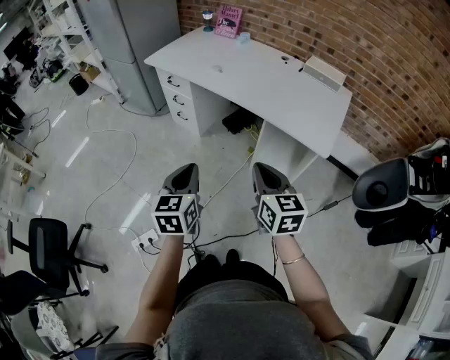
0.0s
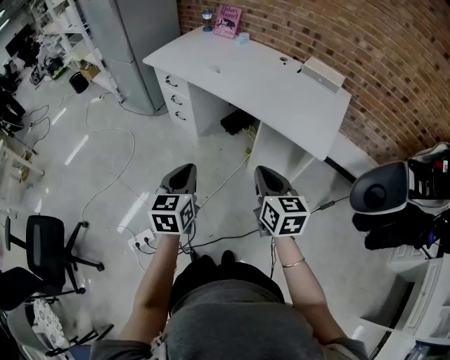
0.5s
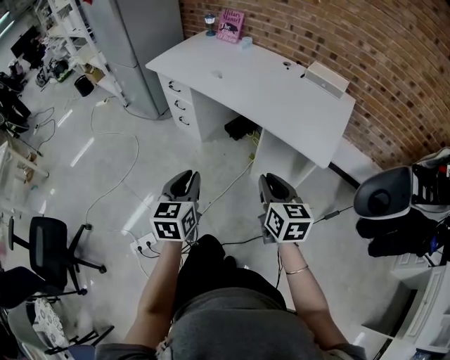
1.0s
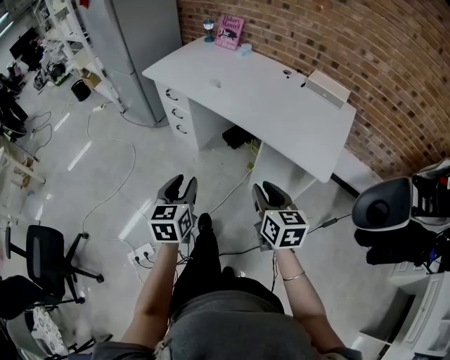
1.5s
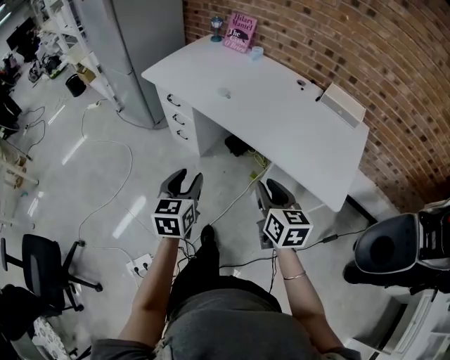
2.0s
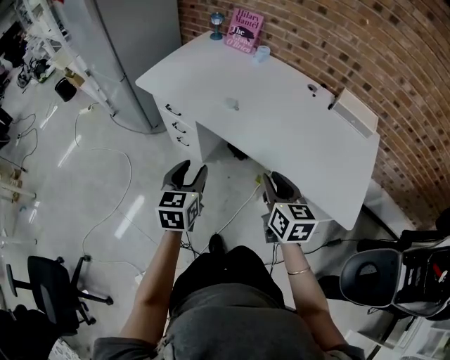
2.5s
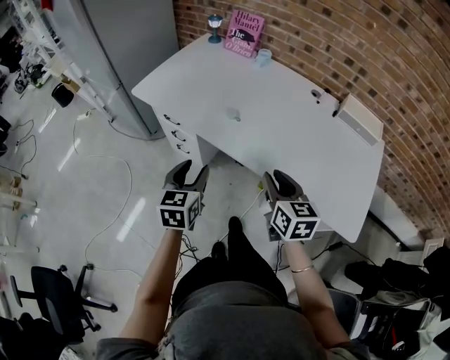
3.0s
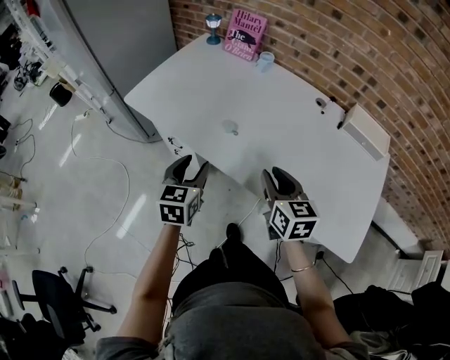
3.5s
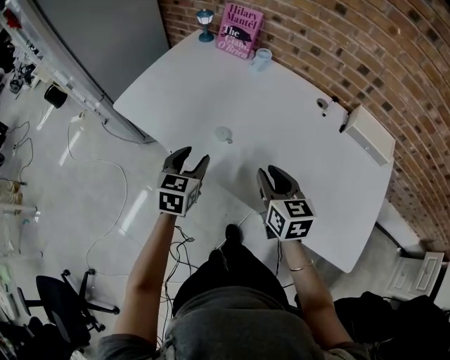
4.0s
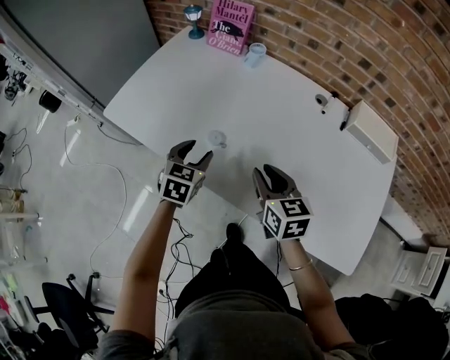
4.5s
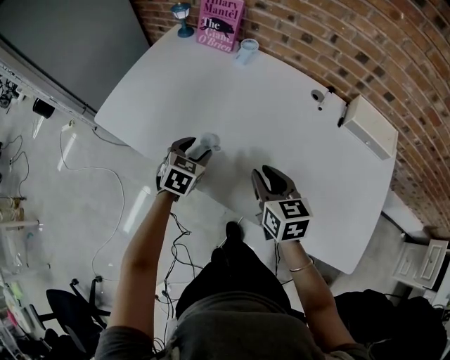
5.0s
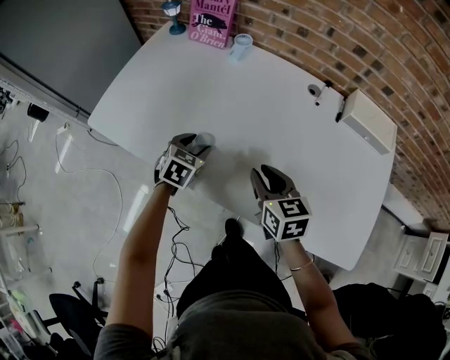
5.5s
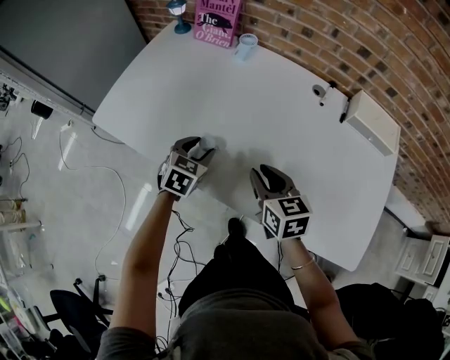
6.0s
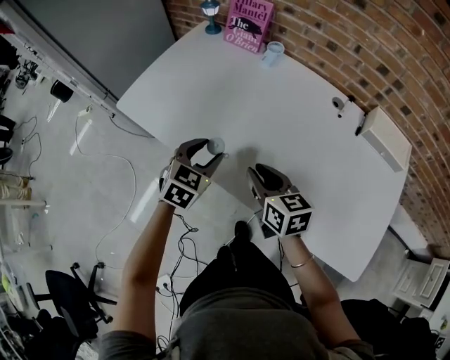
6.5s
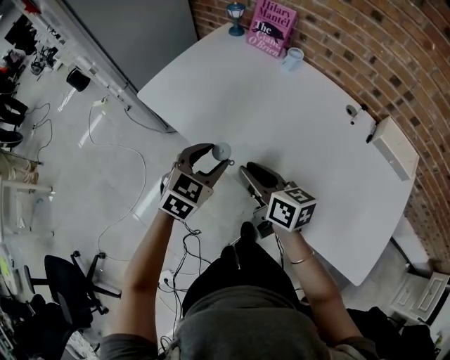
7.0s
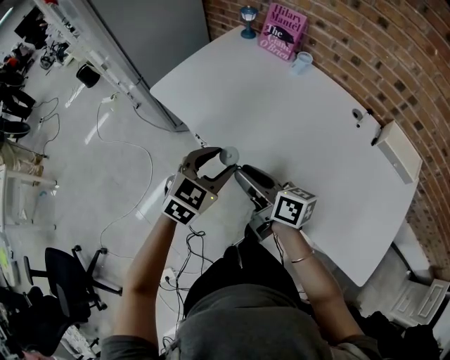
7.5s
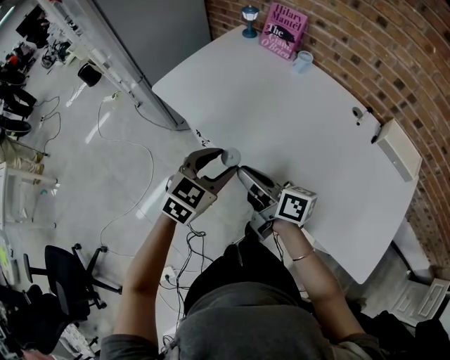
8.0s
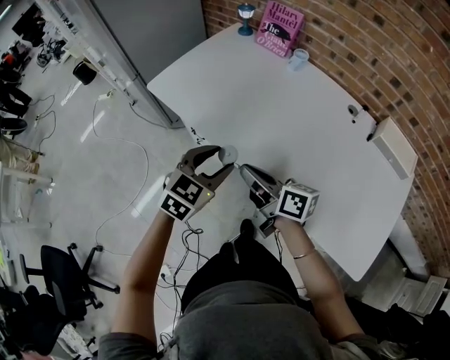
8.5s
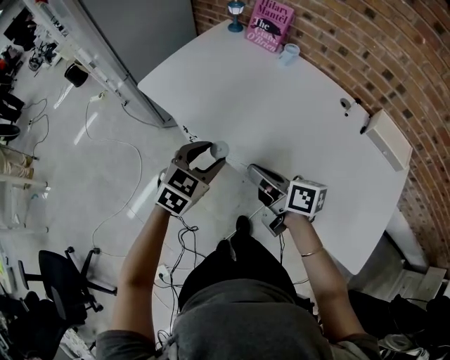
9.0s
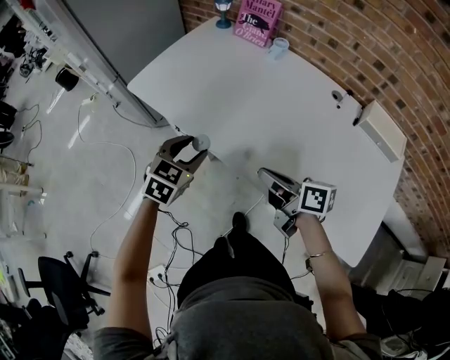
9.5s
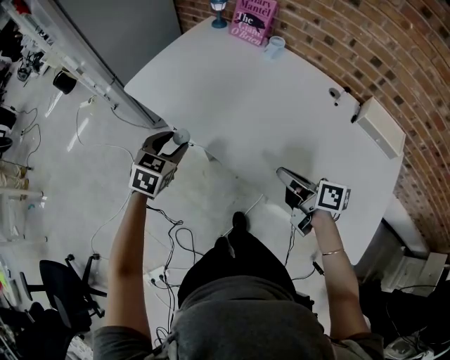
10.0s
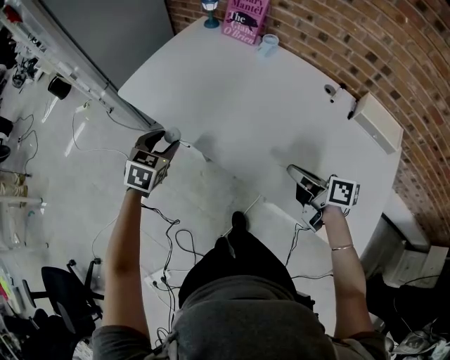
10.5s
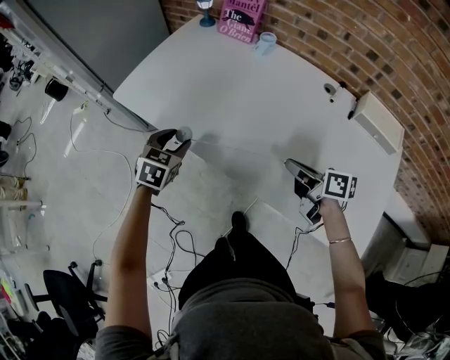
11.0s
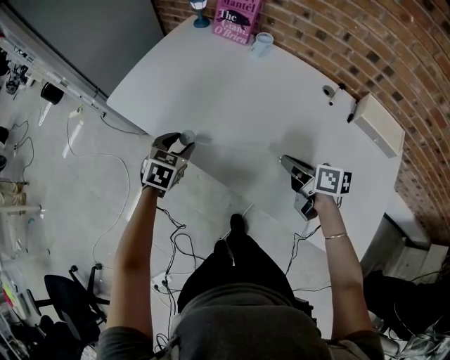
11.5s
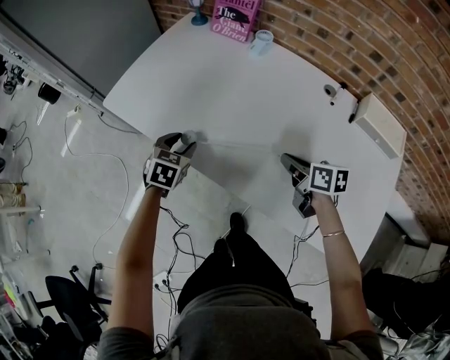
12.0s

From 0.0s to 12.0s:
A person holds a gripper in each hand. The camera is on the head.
From 0.0s to 2.0s: The grippers both shift forward by approximately 20 cm. The left gripper opens up; the right gripper opens its fingers.
From 2.0s to 4.0s: The two grippers go approximately 35 cm forward.
From 4.0s to 6.0s: The right gripper ends up roughly 5 cm from where it was; the left gripper moves forward, downward and to the right, approximately 10 cm, and turns by approximately 20 degrees.
From 6.0s to 8.0s: The left gripper shifts roughly 20 cm backward, upward and to the left; the right gripper goes roughly 15 cm to the left, and changes its angle by some 50 degrees.
From 8.0s to 10.0s: The right gripper goes about 15 cm to the right; the left gripper moves to the left, forward and downward, approximately 10 cm.
From 10.0s to 12.0s: The right gripper is displaced forward, to the right and downward by roughly 15 cm. Meanwhile the left gripper heads downward, to the right and forward, covering approximately 10 cm.

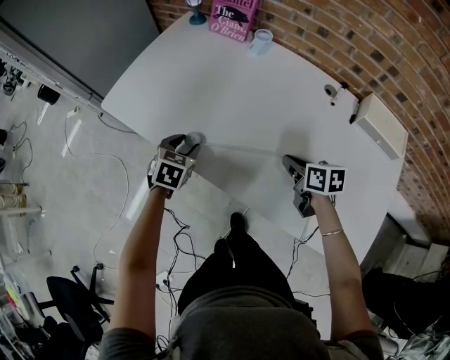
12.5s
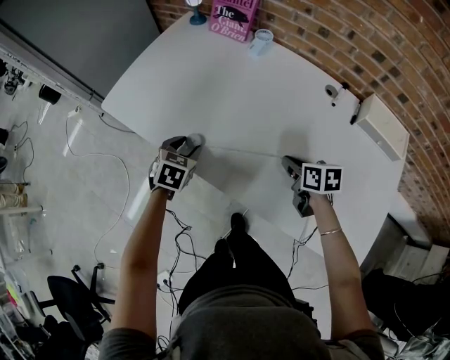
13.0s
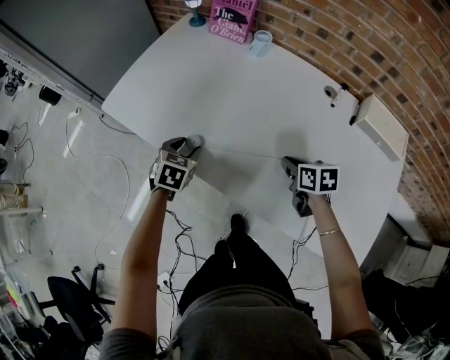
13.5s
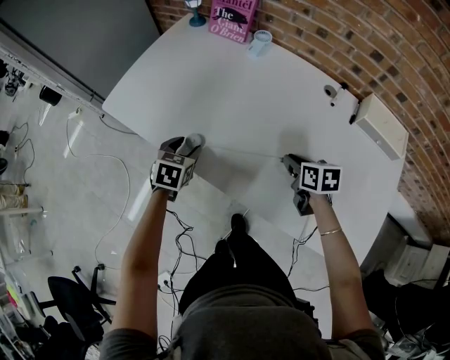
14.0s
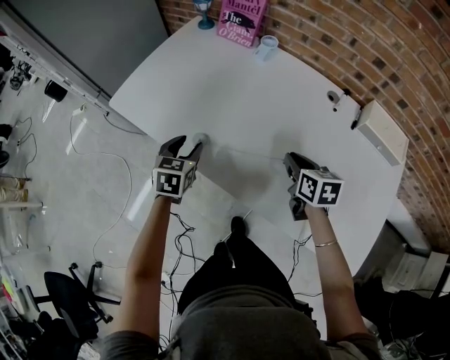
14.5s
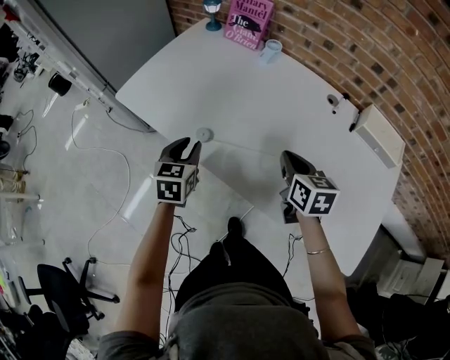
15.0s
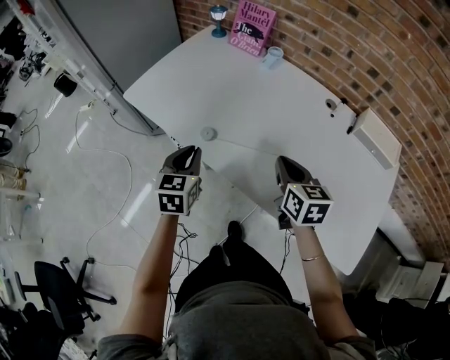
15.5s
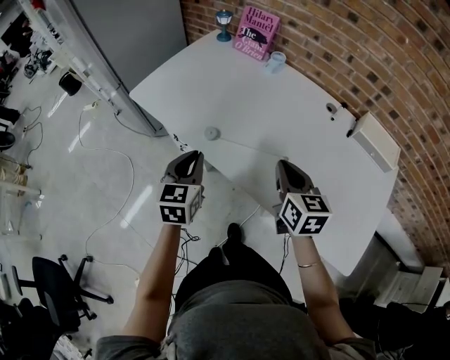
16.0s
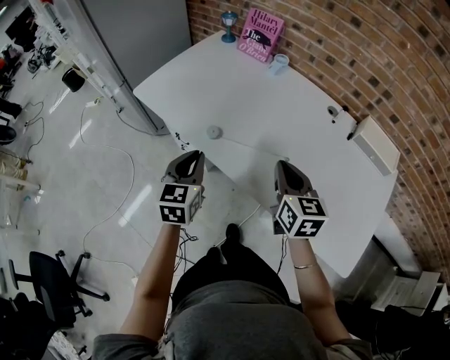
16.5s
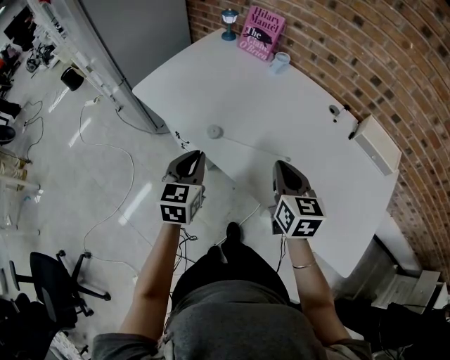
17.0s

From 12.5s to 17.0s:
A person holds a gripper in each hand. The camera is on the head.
From 12.5s to 14.5s: There are only small adjustments of the grippers.
From 14.5s to 17.0s: The right gripper moves upward, to the left and backward, roughly 15 cm, and swivels some 20 degrees; the left gripper moves backward and upward, approximately 15 cm, and closes its fingers.

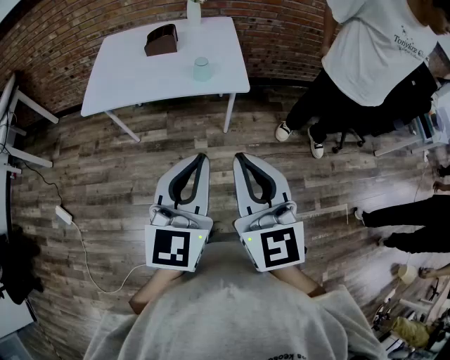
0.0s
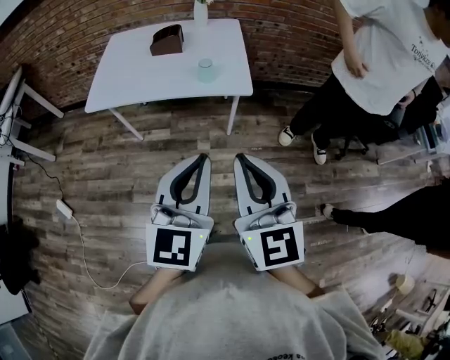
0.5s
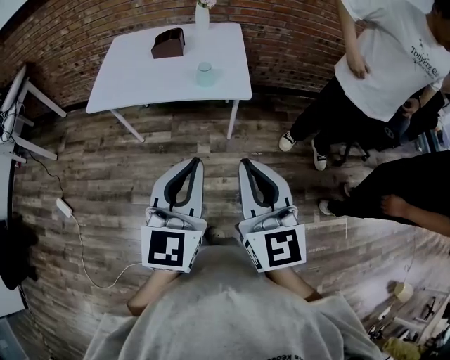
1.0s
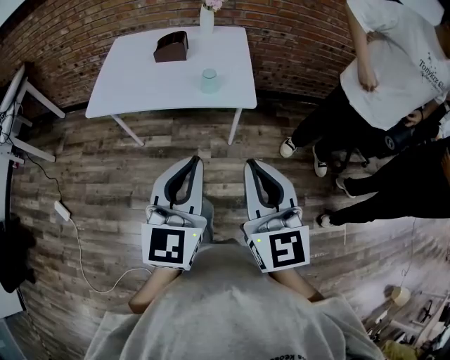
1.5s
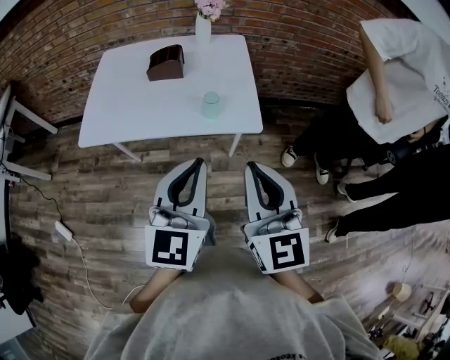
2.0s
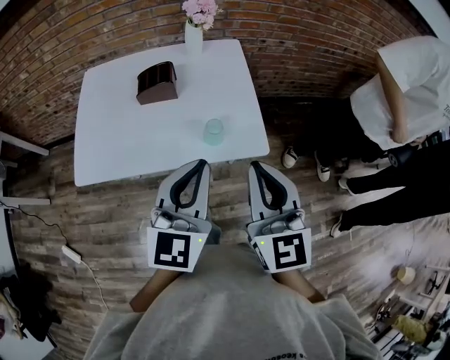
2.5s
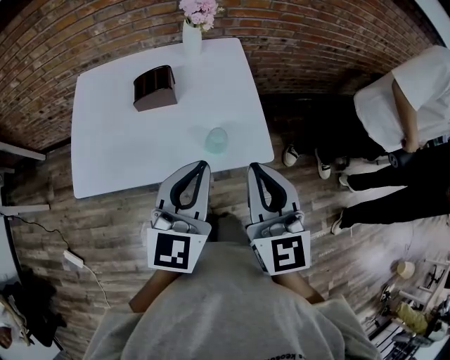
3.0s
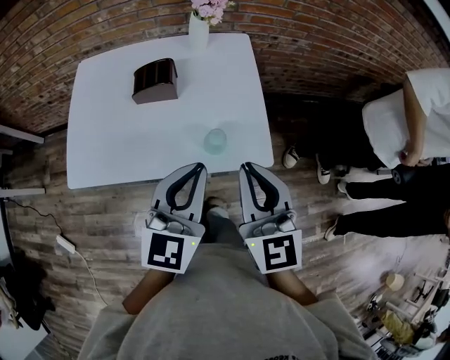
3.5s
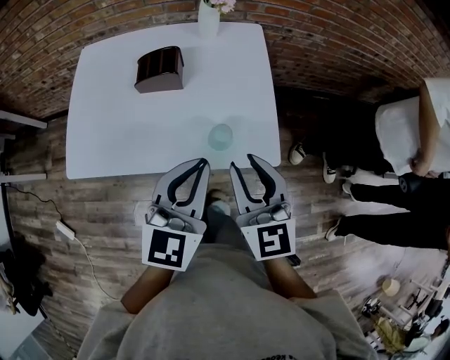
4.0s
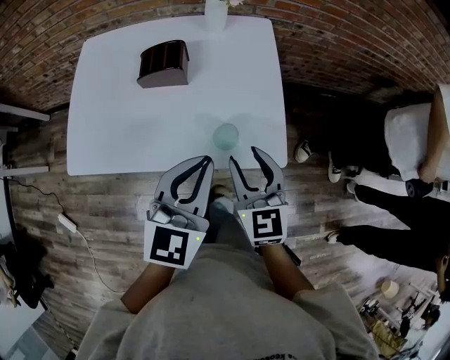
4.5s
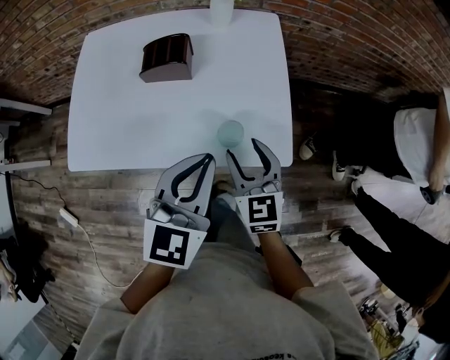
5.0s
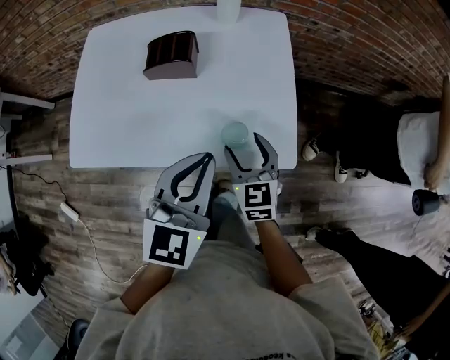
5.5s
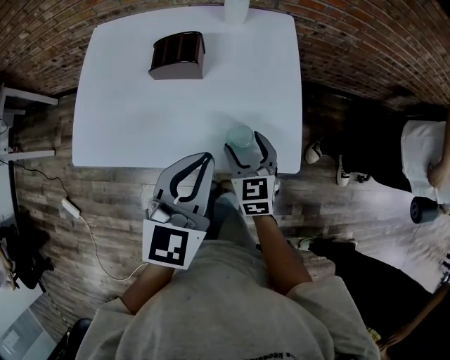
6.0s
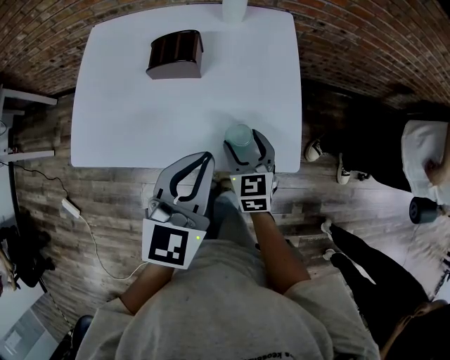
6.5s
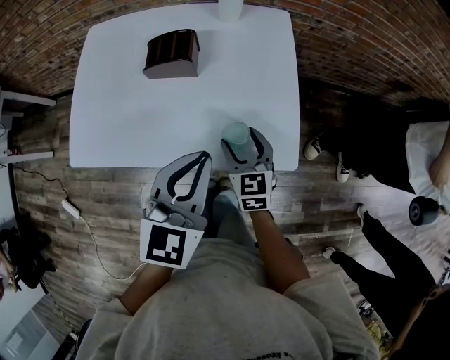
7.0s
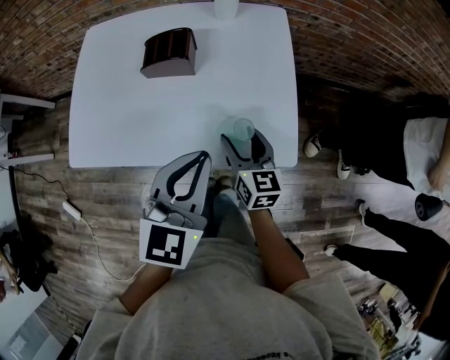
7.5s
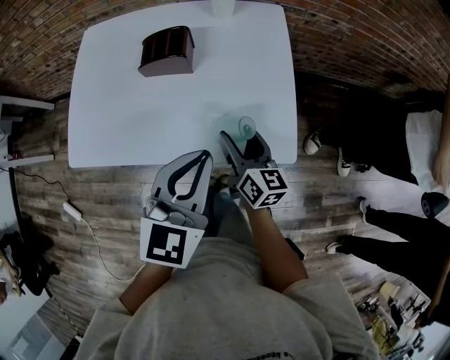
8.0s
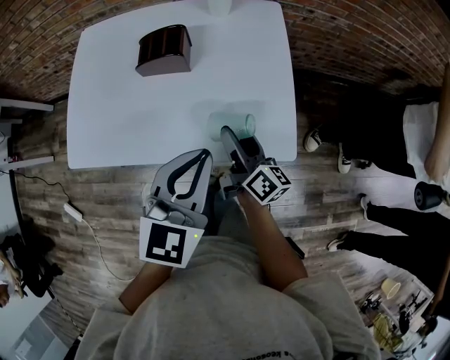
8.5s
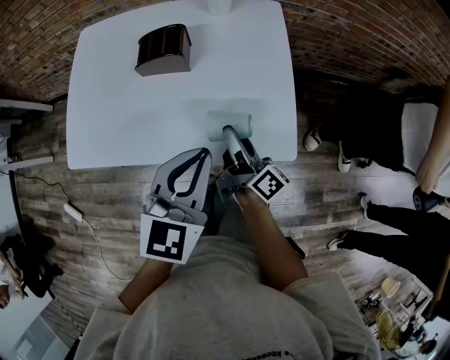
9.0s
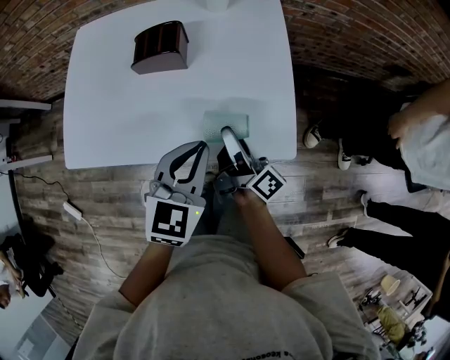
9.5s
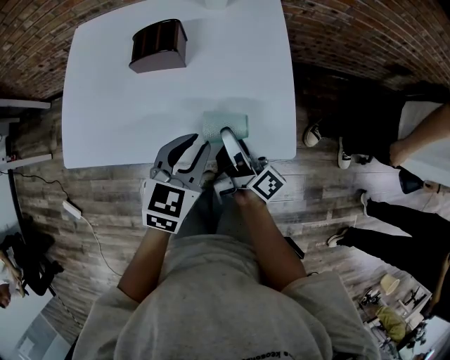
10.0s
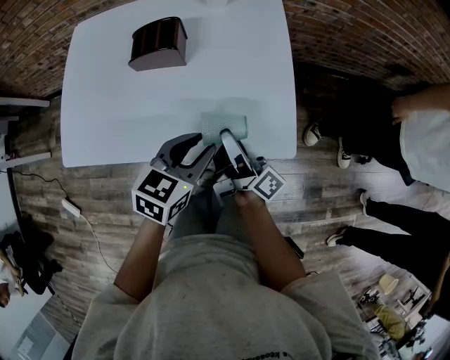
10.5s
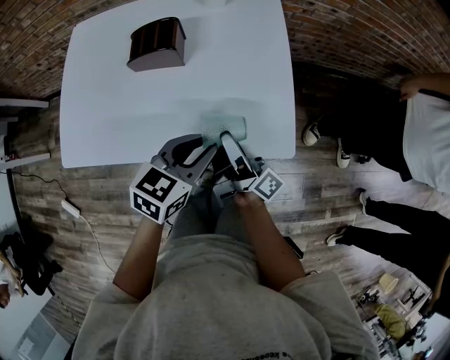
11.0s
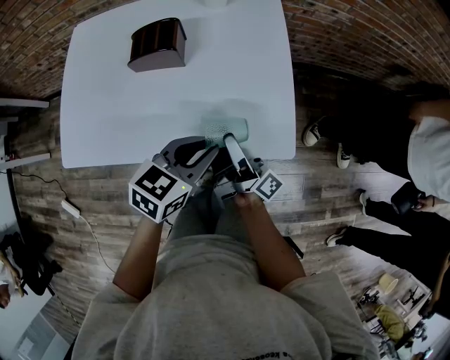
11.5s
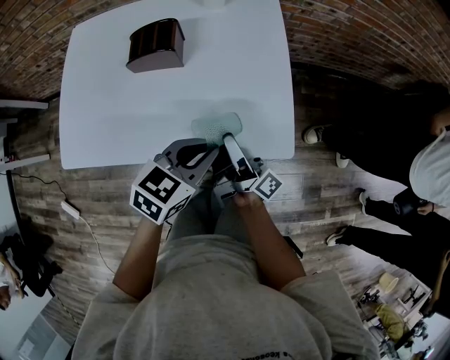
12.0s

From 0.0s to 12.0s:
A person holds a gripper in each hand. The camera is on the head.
From 0.0s to 2.0s: The grippers both shift forward by roughly 20 cm.
From 2.0s to 4.0s: The left gripper moves forward, about 20 cm, while the right gripper travels forward and downward by about 25 cm, and opens.
From 4.0s to 6.0s: The right gripper heads downward and forward, covering approximately 20 cm, and opens up. Meanwhile the left gripper moves about 5 cm.
From 6.0s to 8.0s: The right gripper turns by roughly 40 degrees.
From 8.0s to 10.0s: The right gripper rotates around the line of its fingers by roughly 40 degrees, clockwise from behind. Meanwhile the left gripper moves downward, approximately 10 cm.
